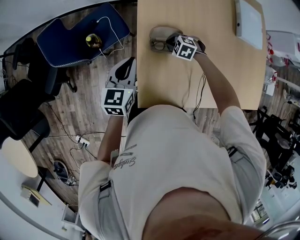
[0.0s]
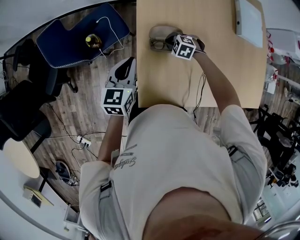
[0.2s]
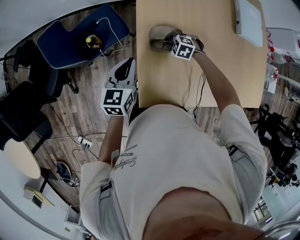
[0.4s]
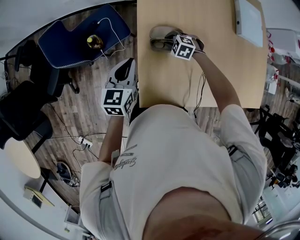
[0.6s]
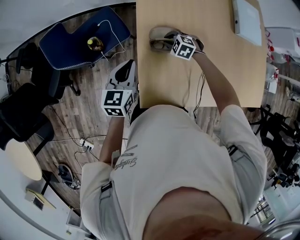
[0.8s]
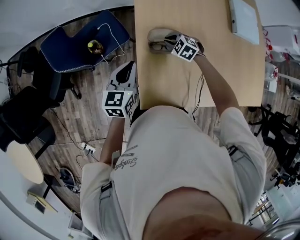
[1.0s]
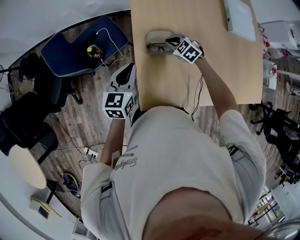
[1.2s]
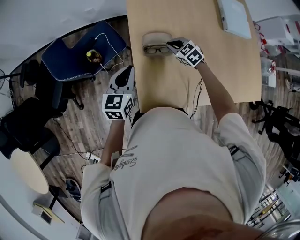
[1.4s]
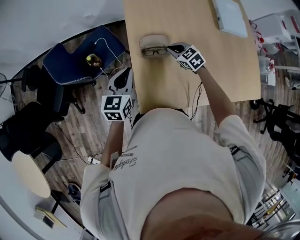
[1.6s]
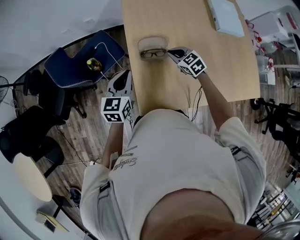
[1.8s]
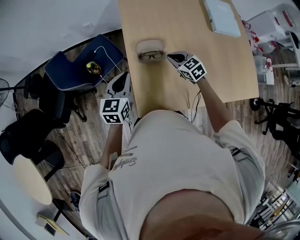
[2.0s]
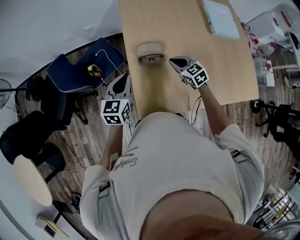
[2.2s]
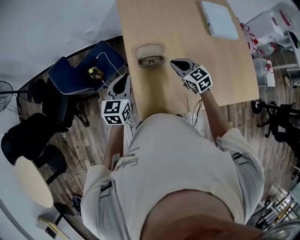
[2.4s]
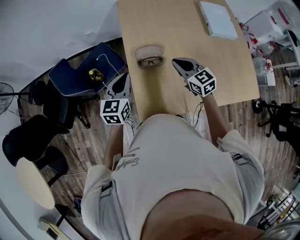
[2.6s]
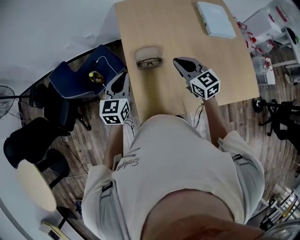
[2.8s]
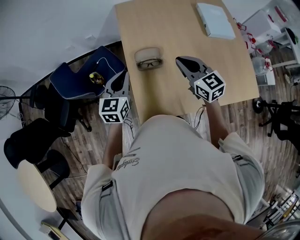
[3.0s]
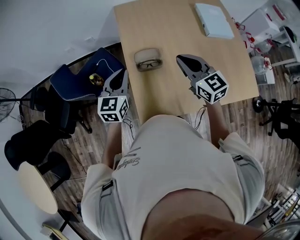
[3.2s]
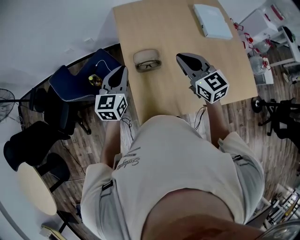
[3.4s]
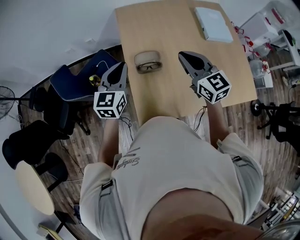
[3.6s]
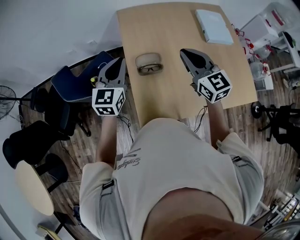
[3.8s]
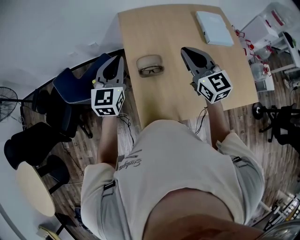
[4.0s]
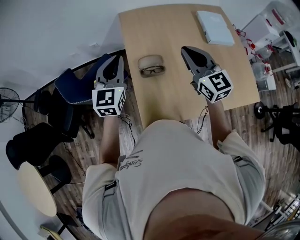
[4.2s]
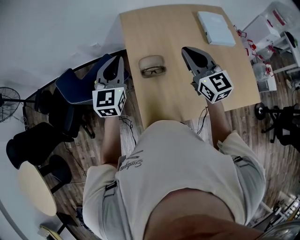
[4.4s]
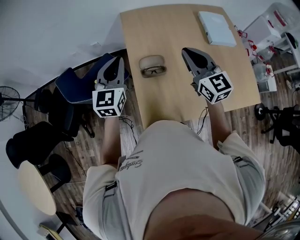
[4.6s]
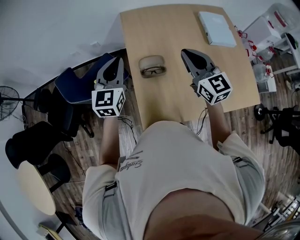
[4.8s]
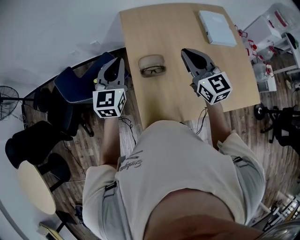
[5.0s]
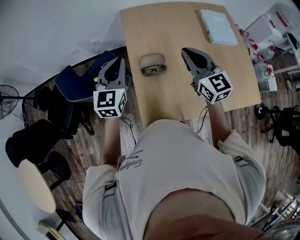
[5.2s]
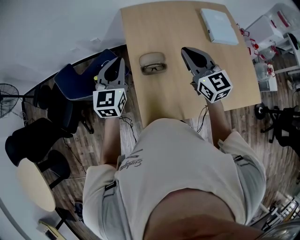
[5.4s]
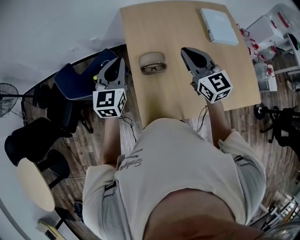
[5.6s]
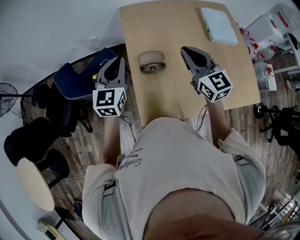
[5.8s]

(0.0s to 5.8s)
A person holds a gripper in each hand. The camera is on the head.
0.0s - 1.4s: The right gripper goes approximately 10 cm upward, and swivels roughly 30 degrees.
1.4s - 2.8s: The left gripper moves upward, roughly 5 cm. The right gripper goes approximately 25 cm upward and backward, and changes its angle by roughly 30 degrees.
2.8s - 4.4s: The two grippers go some 15 cm upward.
4.4s - 5.8s: The grippers make only small movements.

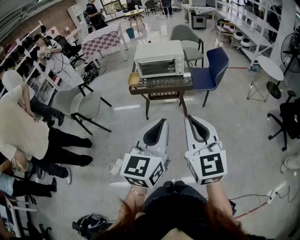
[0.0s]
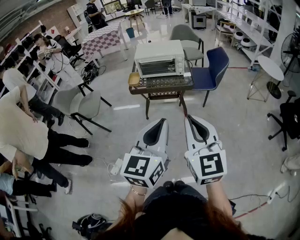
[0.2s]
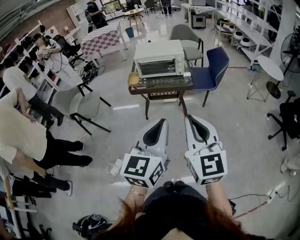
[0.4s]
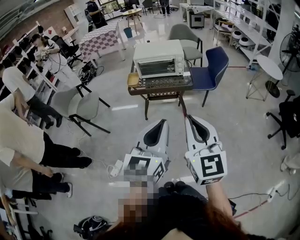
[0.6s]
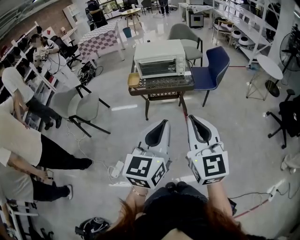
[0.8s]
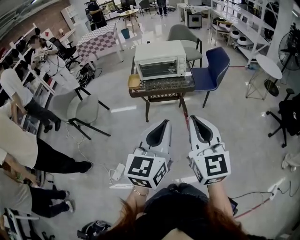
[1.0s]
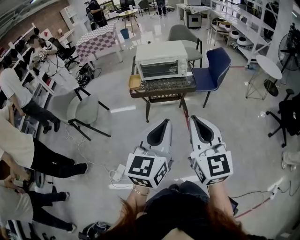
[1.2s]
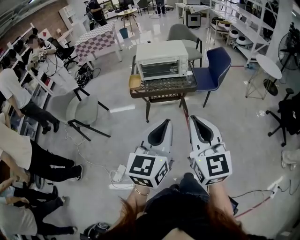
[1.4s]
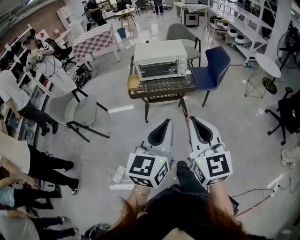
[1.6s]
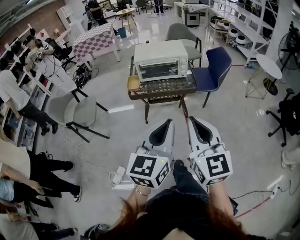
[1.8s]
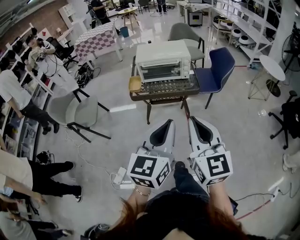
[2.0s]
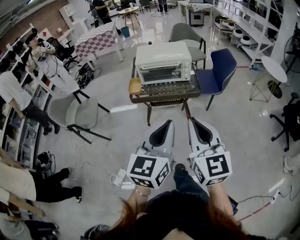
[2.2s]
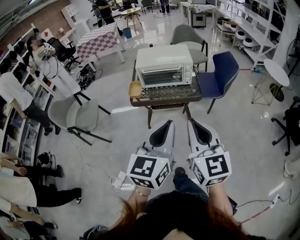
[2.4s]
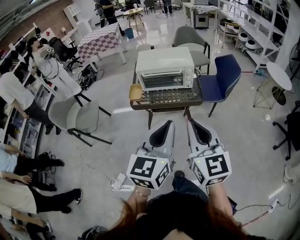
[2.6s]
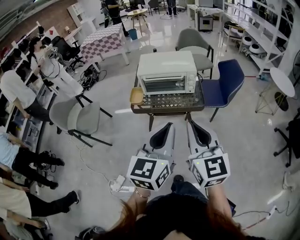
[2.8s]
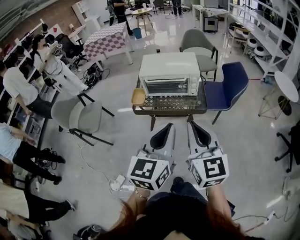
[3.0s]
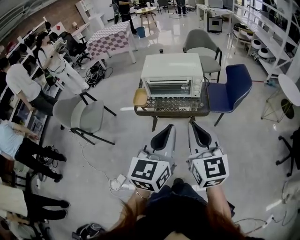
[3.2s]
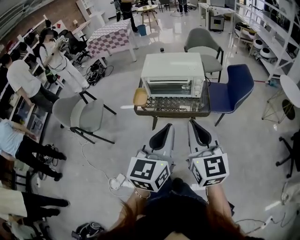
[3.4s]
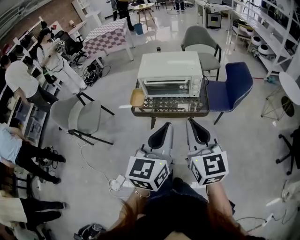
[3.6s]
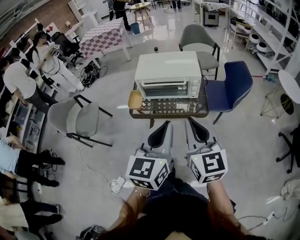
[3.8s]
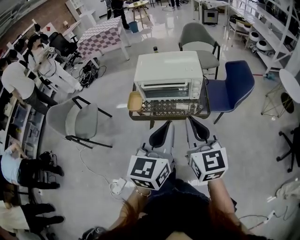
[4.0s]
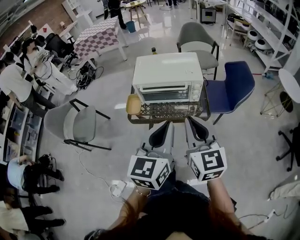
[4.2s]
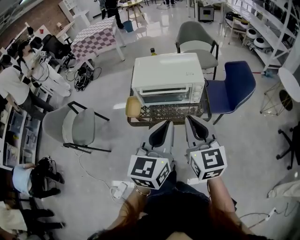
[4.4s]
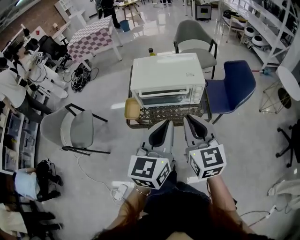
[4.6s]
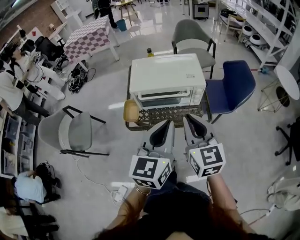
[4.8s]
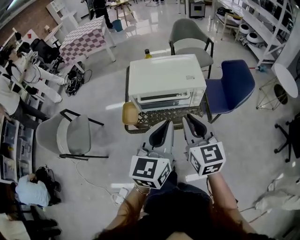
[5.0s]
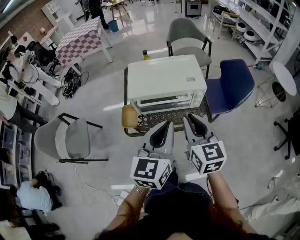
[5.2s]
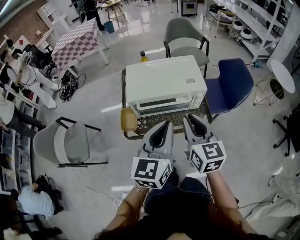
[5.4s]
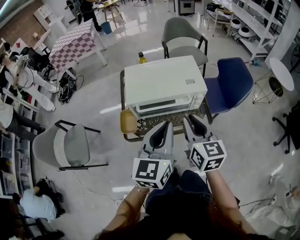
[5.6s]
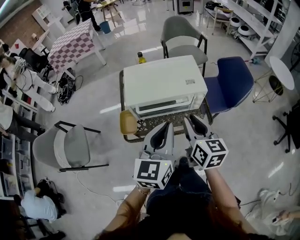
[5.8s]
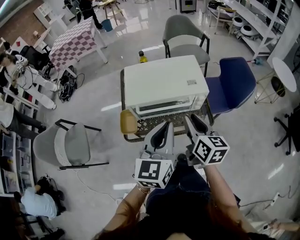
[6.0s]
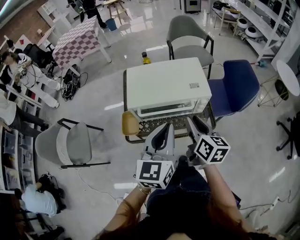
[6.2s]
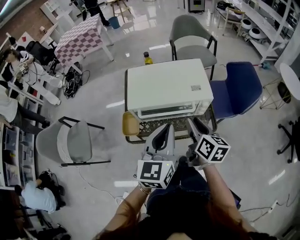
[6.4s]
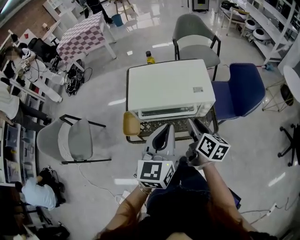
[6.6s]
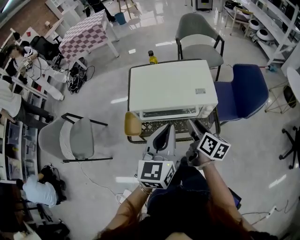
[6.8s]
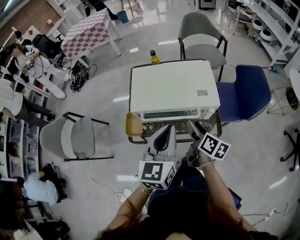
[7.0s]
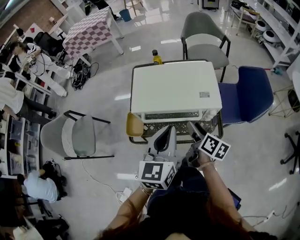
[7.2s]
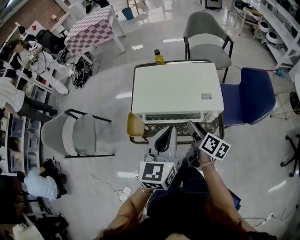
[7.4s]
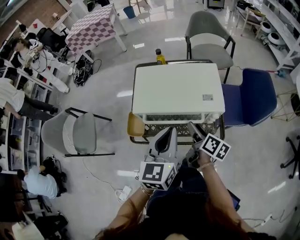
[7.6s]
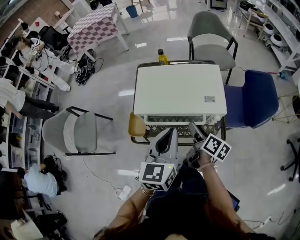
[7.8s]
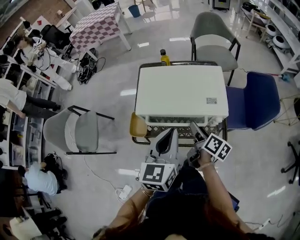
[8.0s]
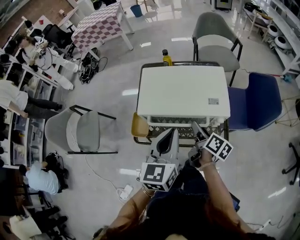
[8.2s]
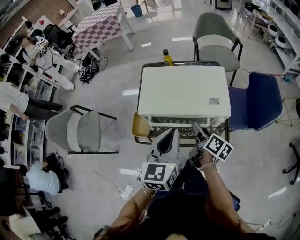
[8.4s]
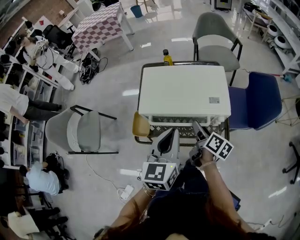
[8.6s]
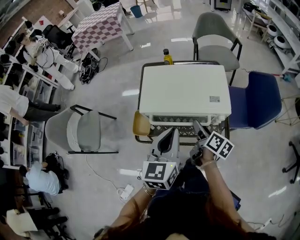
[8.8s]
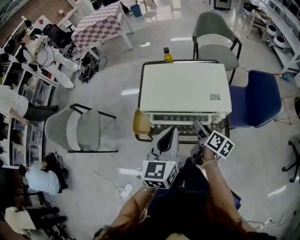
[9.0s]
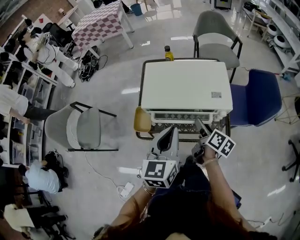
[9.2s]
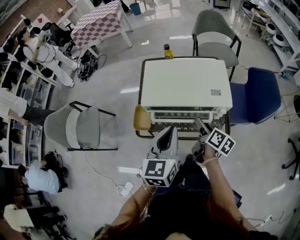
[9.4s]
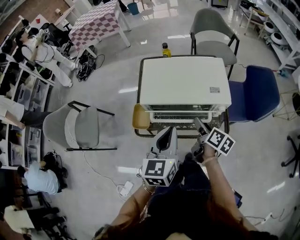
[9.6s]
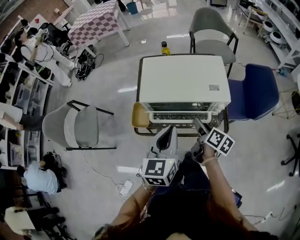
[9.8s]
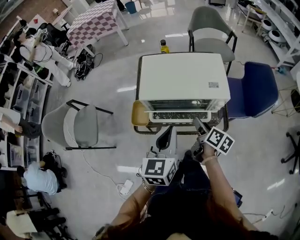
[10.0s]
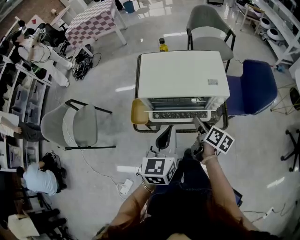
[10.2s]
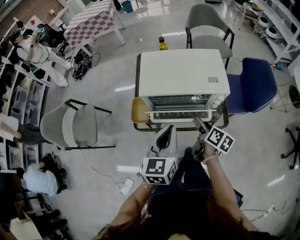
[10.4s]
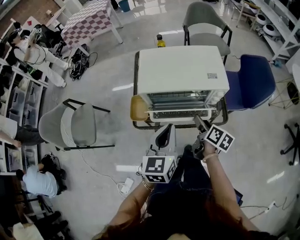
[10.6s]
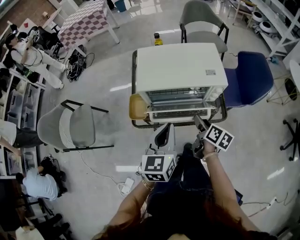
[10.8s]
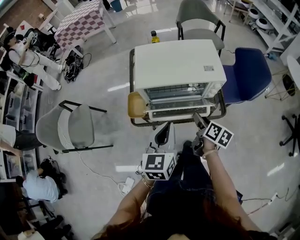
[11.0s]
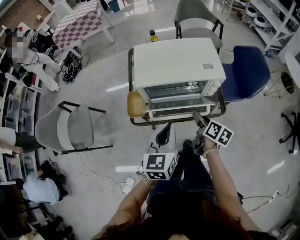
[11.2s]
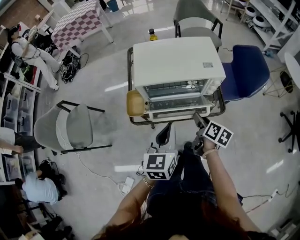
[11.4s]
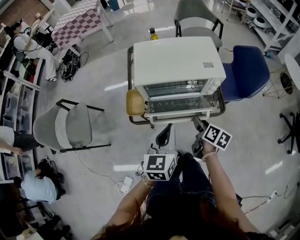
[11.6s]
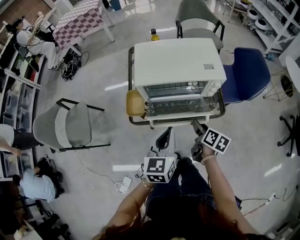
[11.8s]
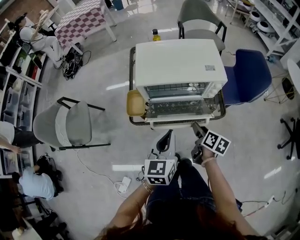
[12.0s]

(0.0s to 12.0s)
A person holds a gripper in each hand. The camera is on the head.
0.0s - 1.6s: The right gripper goes approximately 10 cm to the left and forward. The left gripper goes some 10 cm forward and to the left.
1.6s - 3.0s: The two grippers go roughly 20 cm forward.
3.0s - 4.4s: Both grippers travel together forward, roughly 20 cm.
4.4s - 6.0s: The left gripper shifts roughly 15 cm forward; the right gripper is displaced forward and downward by about 20 cm, changes its angle by about 30 degrees, and opens up.
6.0s - 7.6s: The right gripper heads downward and forward, covering approximately 15 cm, swivels about 30 degrees, and opens, while the left gripper moves forward, some 10 cm.
7.6s - 9.0s: The grippers stay close to where they were, moving slightly.
9.0s - 10.4s: The two grippers go some 5 cm backward.
10.4s - 12.0s: The right gripper shifts about 10 cm backward and downward. Meanwhile the left gripper travels downward and backward by some 10 cm.

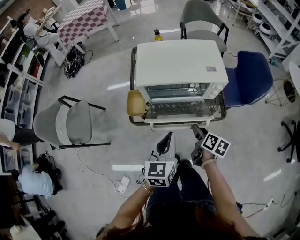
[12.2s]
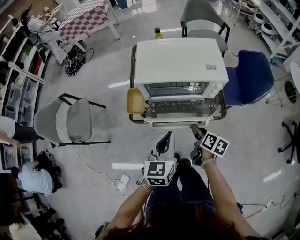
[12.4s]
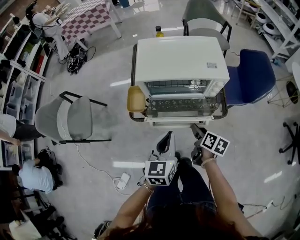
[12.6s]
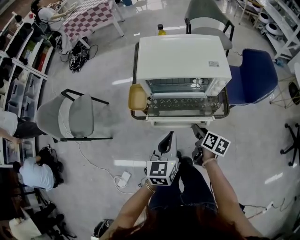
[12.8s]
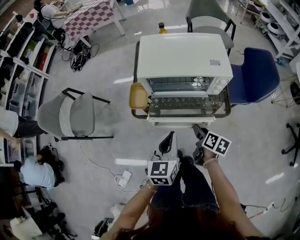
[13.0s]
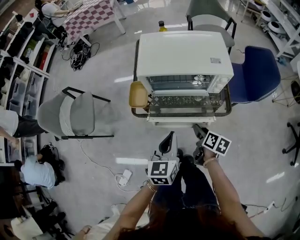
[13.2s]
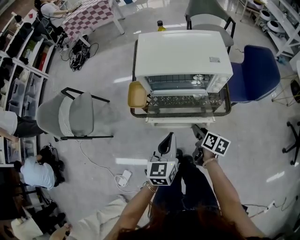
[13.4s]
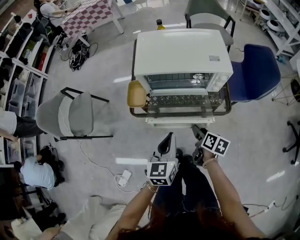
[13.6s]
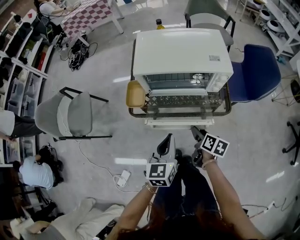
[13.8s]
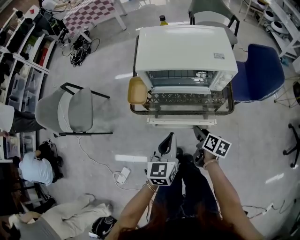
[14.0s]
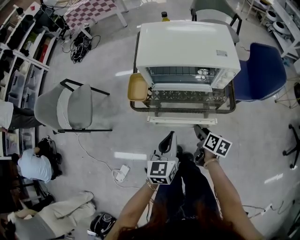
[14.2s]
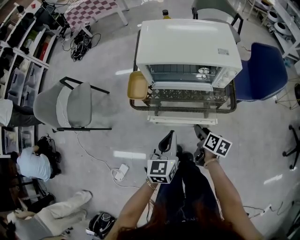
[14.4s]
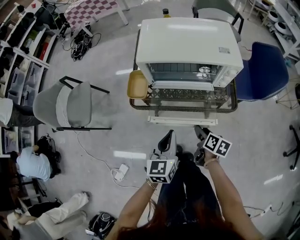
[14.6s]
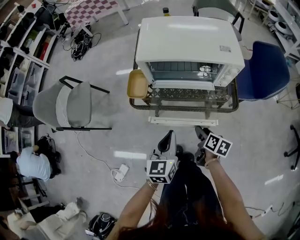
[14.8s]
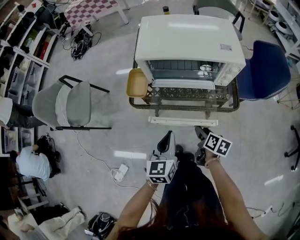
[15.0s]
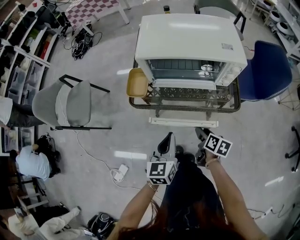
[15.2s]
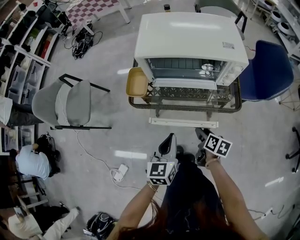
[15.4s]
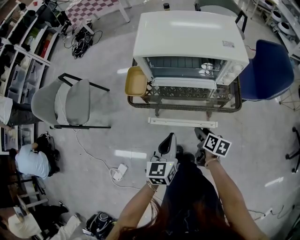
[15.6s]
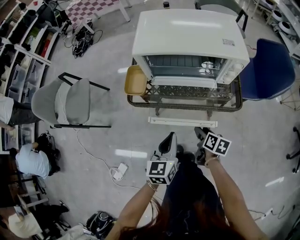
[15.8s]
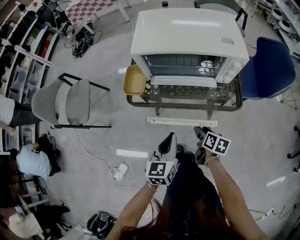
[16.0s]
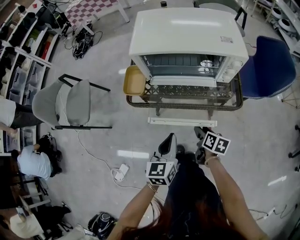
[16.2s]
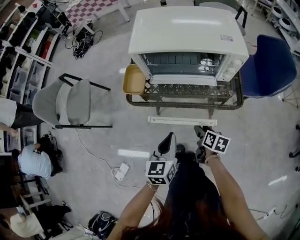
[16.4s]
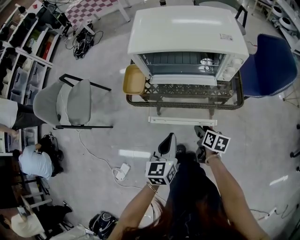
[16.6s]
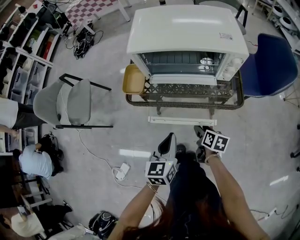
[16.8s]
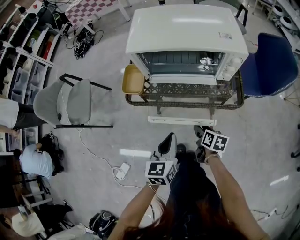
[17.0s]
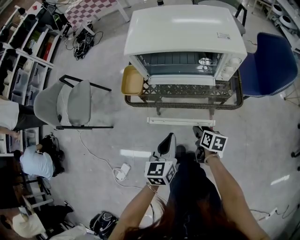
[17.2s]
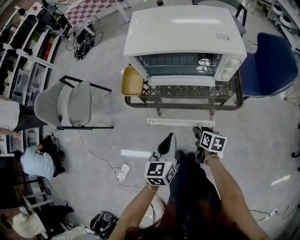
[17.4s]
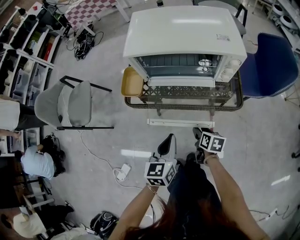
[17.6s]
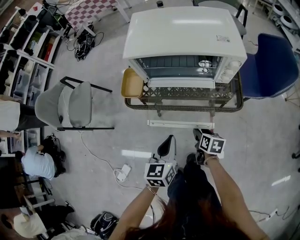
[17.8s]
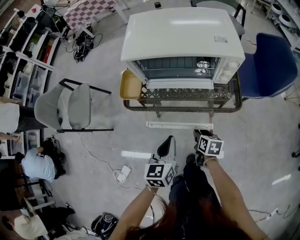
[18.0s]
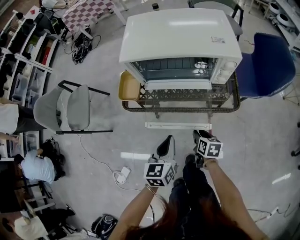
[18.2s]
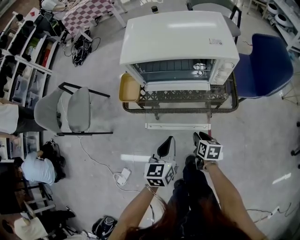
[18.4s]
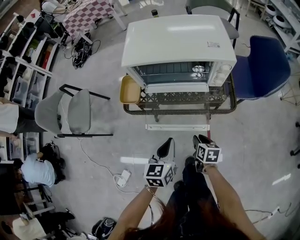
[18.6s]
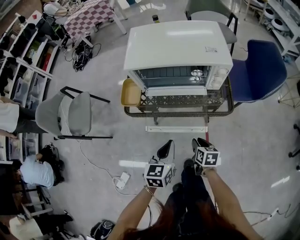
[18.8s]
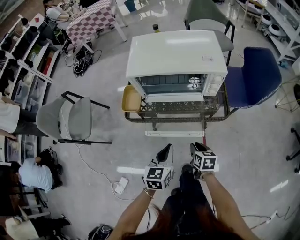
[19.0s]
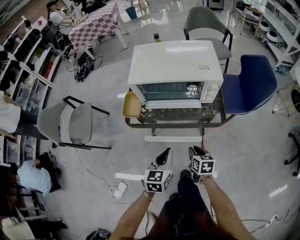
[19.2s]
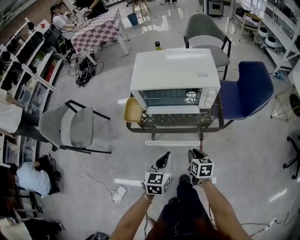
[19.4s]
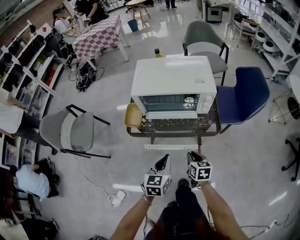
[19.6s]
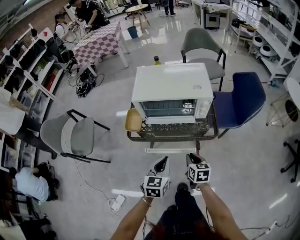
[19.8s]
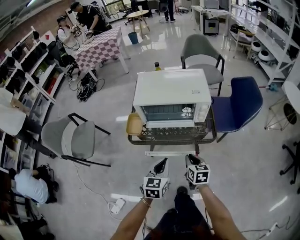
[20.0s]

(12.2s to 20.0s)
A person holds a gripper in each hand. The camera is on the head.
12.2s - 13.8s: Both grippers move downward, about 5 cm.
13.8s - 15.4s: The two grippers go about 10 cm downward.
15.4s - 16.8s: The grippers stay close to where they were, moving slightly.
16.8s - 18.4s: The right gripper closes.
18.4s - 20.0s: The left gripper travels upward by some 10 cm. Meanwhile the right gripper heads upward, covering some 20 cm, and turns by approximately 20 degrees.
